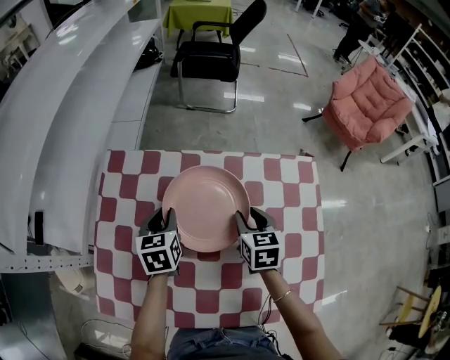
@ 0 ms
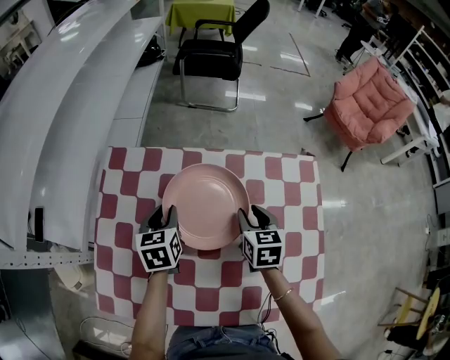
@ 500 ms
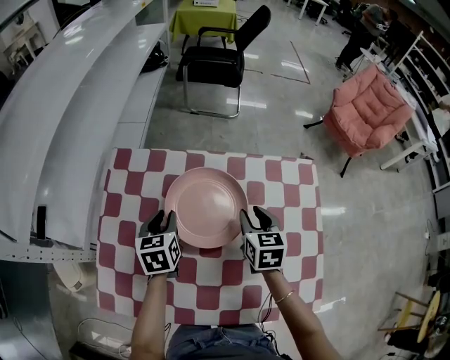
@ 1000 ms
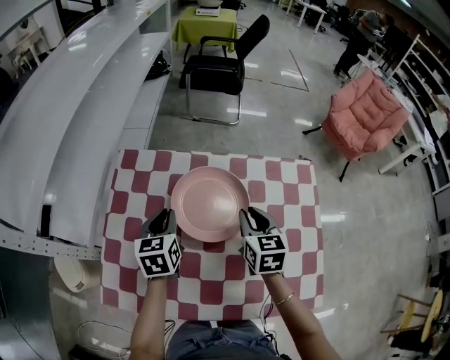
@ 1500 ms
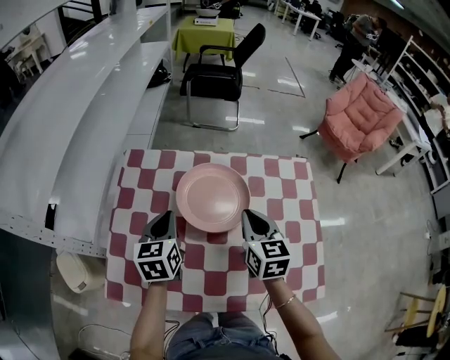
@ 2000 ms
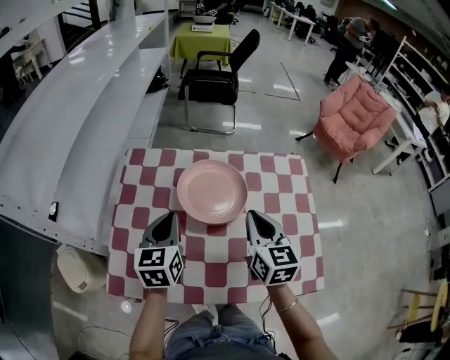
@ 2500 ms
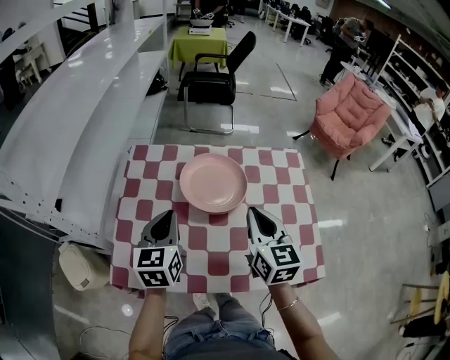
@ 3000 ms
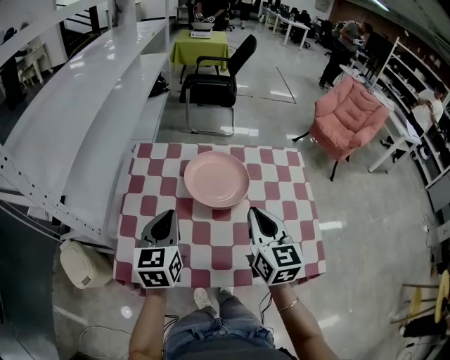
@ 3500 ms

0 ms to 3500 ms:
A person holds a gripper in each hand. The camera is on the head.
0 ms to 2000 ms: Both grippers move upward and backward, roughly 15 cm. The right gripper closes up.
2000 ms to 3500 ms: Both grippers move backward and upward, about 15 cm.

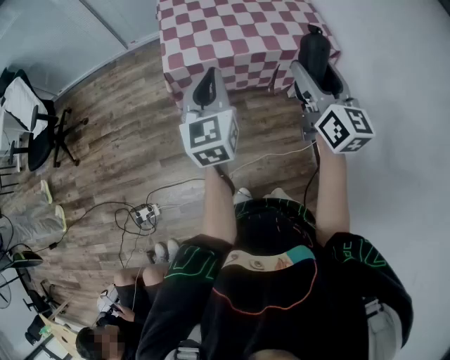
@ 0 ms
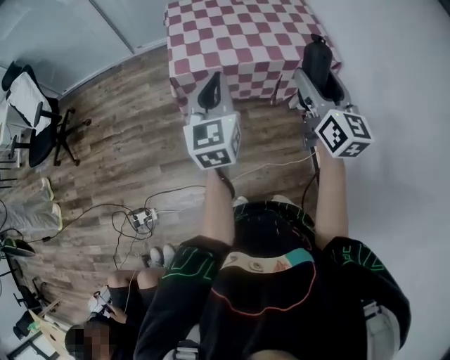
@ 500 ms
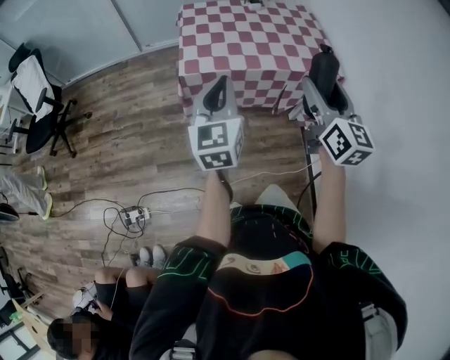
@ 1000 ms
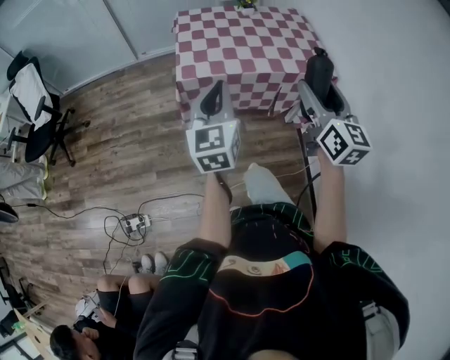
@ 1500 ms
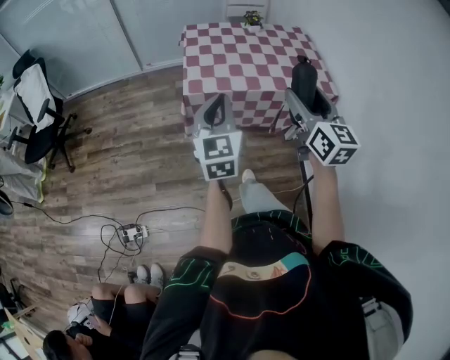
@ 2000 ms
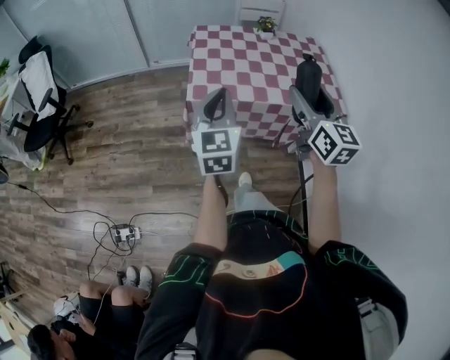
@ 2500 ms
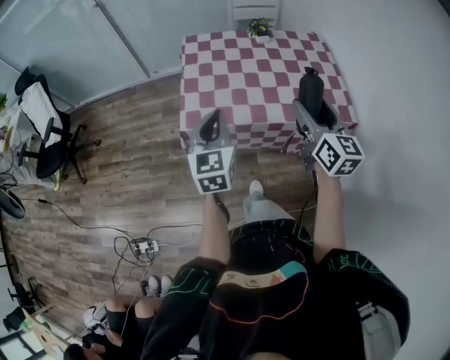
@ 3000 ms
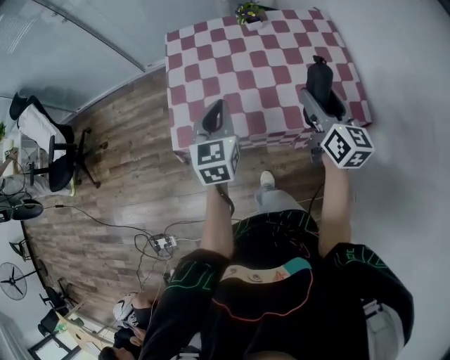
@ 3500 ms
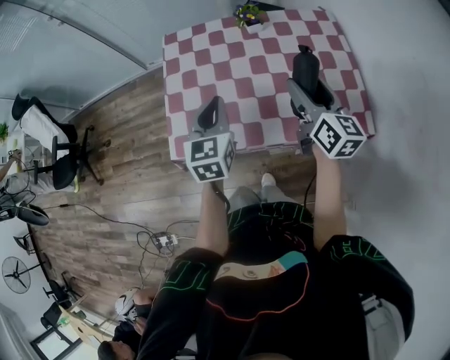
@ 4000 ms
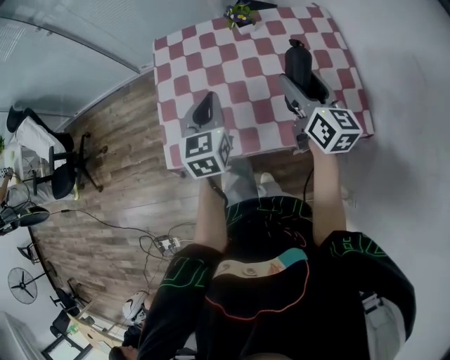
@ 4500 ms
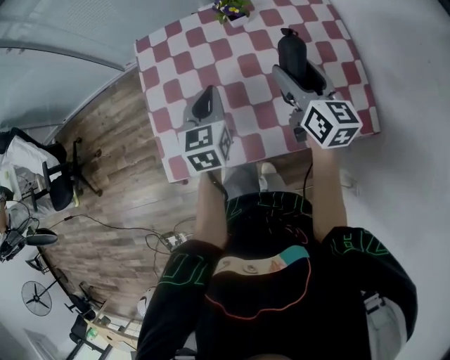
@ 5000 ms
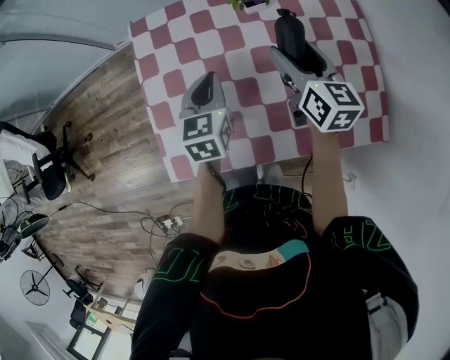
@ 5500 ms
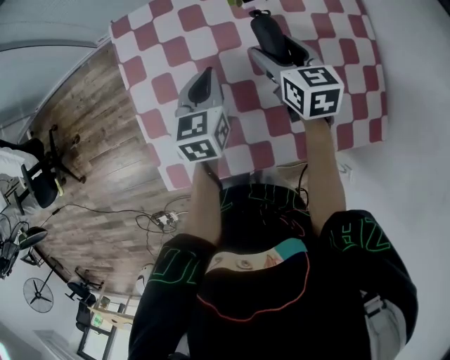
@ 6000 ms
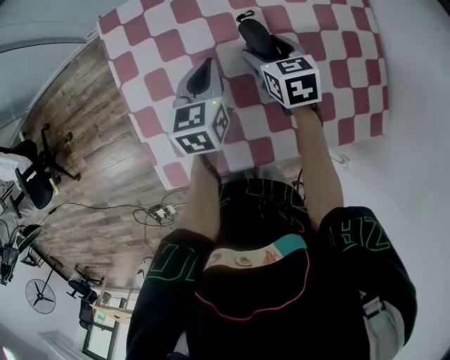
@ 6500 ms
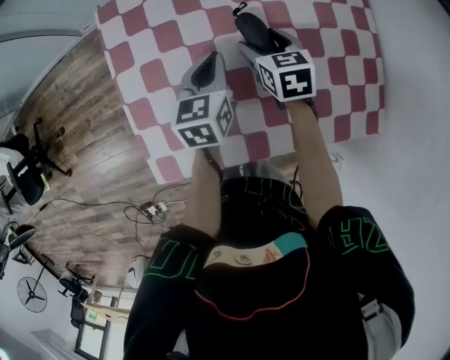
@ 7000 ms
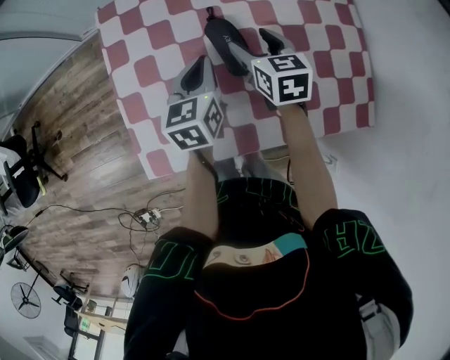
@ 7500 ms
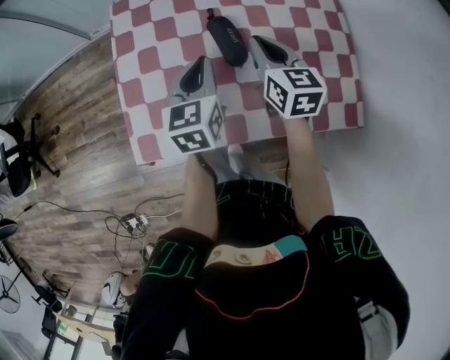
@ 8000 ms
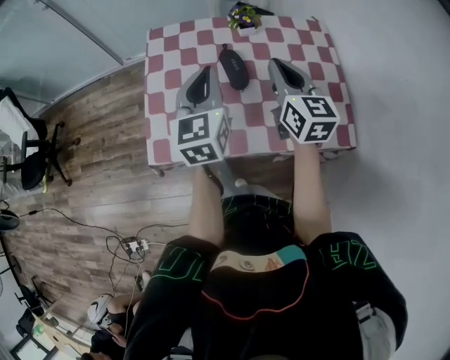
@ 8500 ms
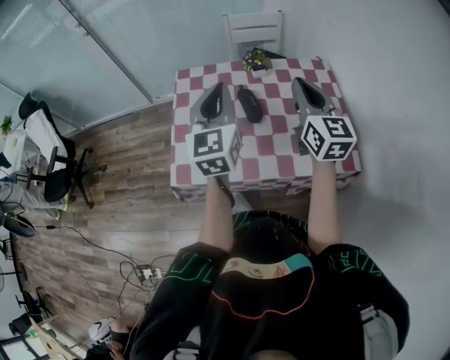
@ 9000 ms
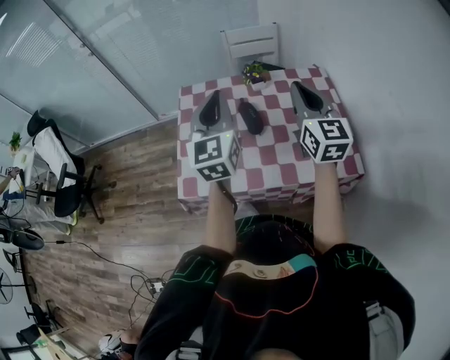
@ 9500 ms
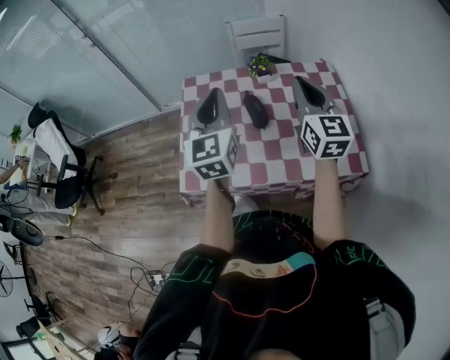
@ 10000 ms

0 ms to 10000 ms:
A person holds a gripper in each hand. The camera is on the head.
0 ms to 2000 ms: The right gripper shifts approximately 5 cm to the left.
2000 ms to 4000 ms: Both grippers travel together forward, about 35 cm.
4000 ms to 6000 ms: The right gripper moves forward, downward and to the left, some 25 cm, and rotates some 30 degrees. The left gripper shifts about 20 cm forward and downward.
6000 ms to 8000 ms: Both grippers travel together backward, about 5 cm. The right gripper closes its fingers.
8000 ms to 10000 ms: Both grippers travel together upward, some 20 cm. The right gripper swivels some 30 degrees. Meanwhile the left gripper swivels approximately 30 degrees.

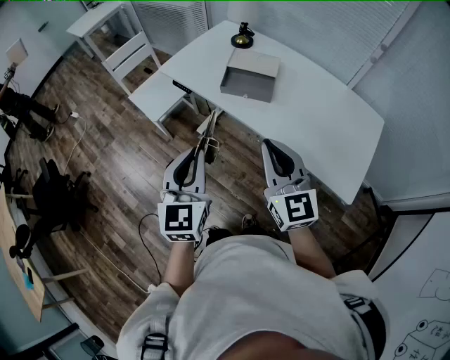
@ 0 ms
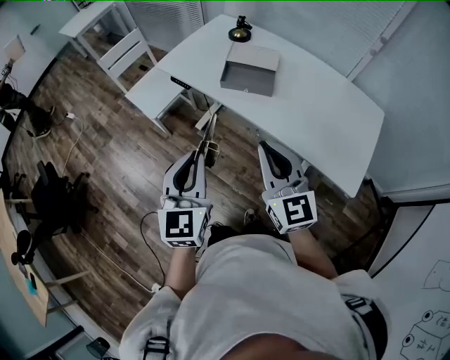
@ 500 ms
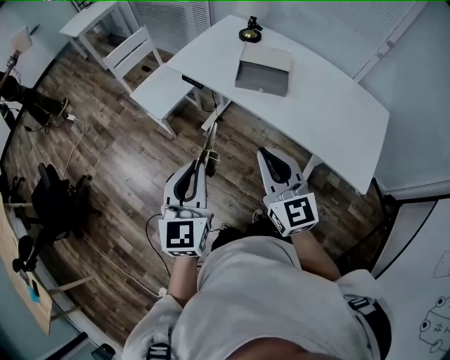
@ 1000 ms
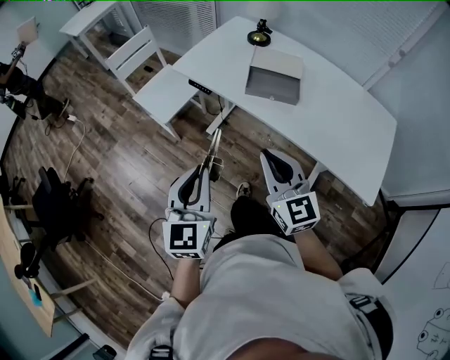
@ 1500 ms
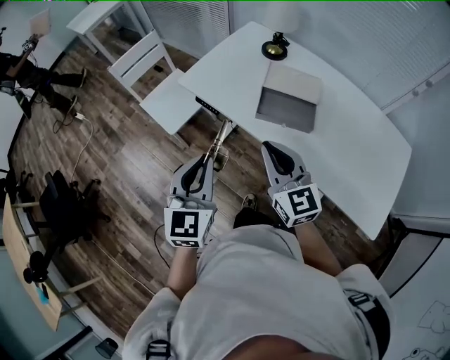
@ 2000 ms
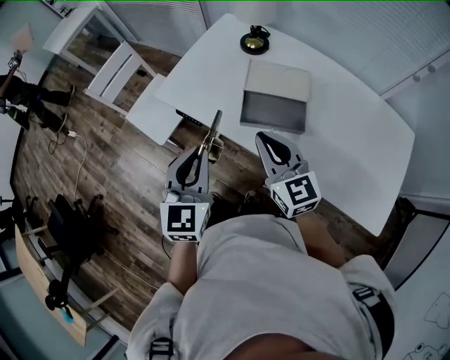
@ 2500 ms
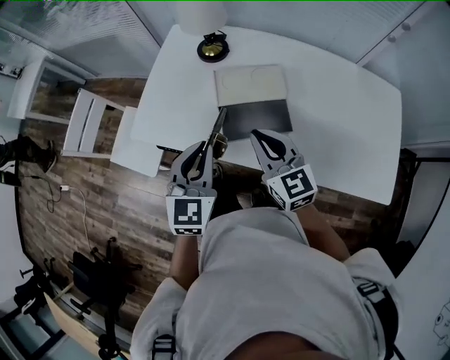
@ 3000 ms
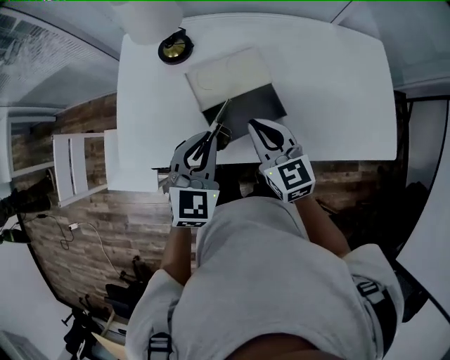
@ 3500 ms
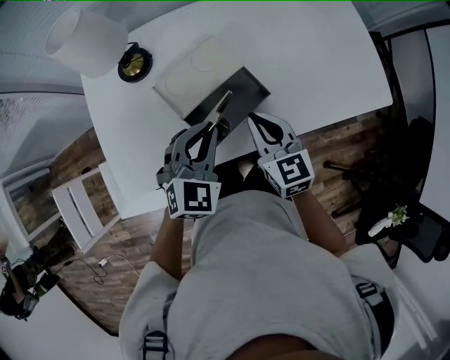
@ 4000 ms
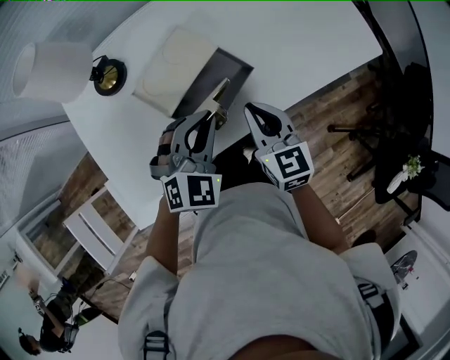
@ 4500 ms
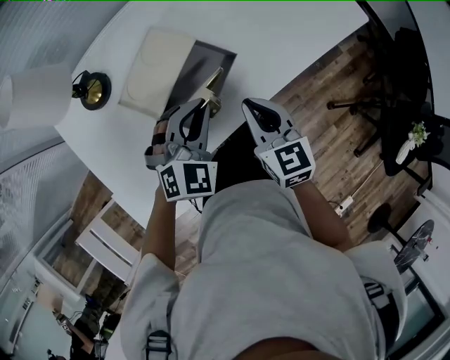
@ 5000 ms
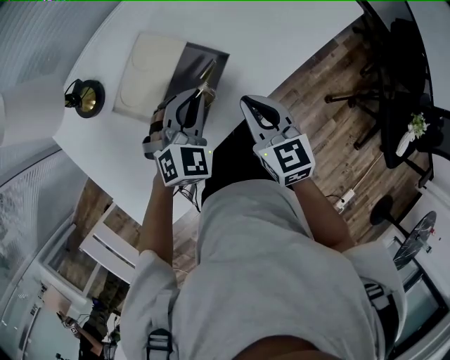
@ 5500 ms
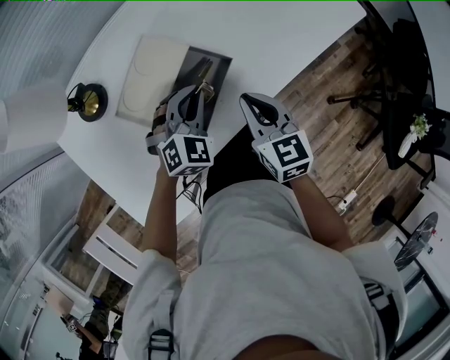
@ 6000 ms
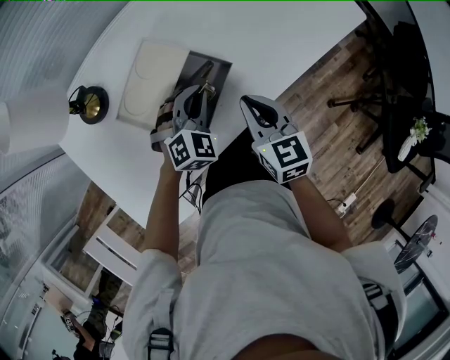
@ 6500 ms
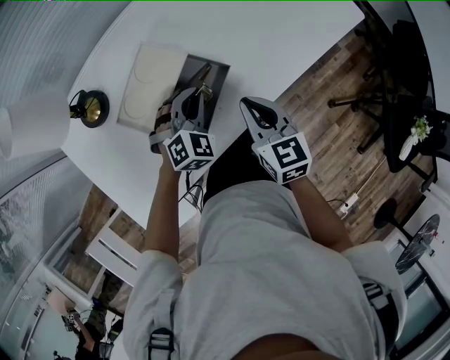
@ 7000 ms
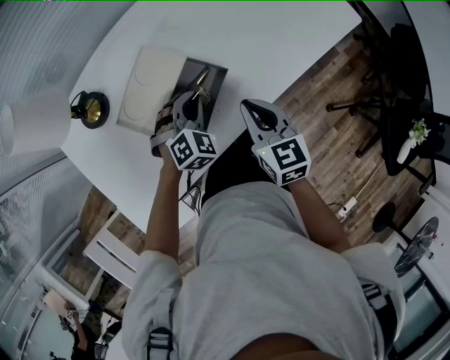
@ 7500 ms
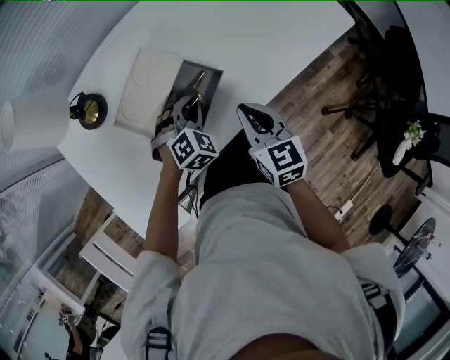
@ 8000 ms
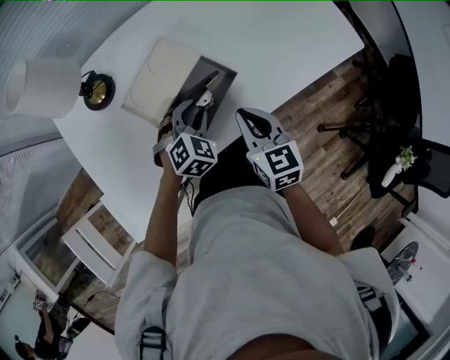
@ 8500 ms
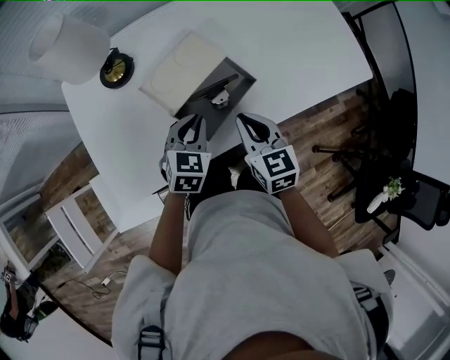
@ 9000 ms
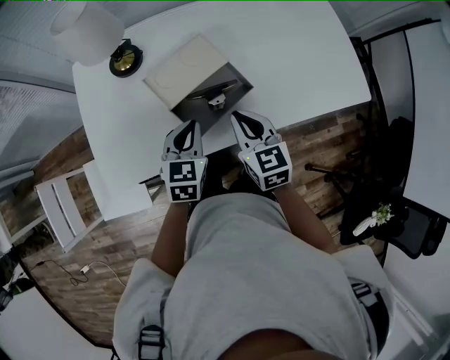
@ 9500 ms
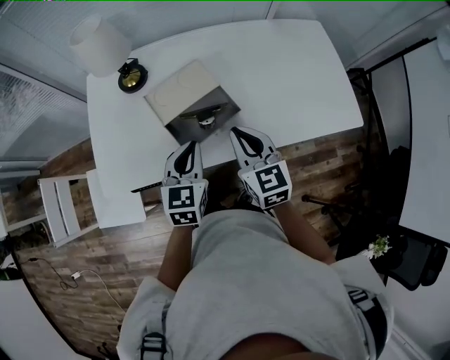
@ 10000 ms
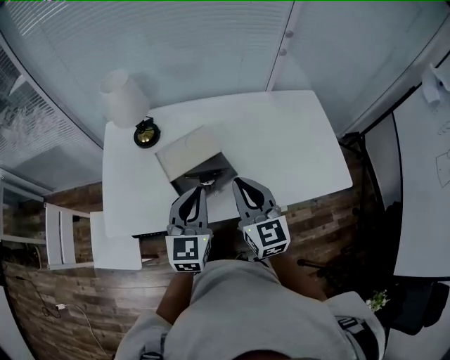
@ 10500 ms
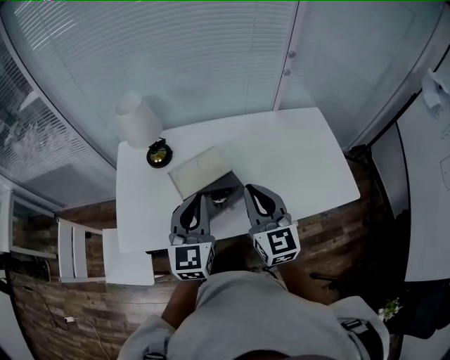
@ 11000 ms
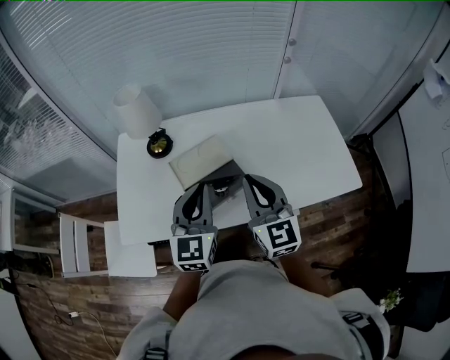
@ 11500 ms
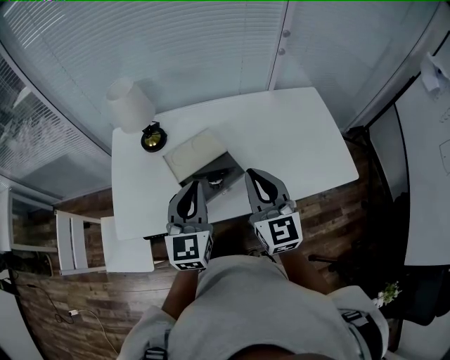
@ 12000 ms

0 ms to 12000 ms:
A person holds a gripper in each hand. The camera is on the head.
0 ms to 2000 ms: Both grippers move forward and to the left, approximately 20 cm.
2000 ms to 4000 ms: The right gripper changes place by about 25 cm, and changes its angle by some 60 degrees. Meanwhile the left gripper changes place by roughly 35 cm, and rotates about 80 degrees.
4000 ms to 6000 ms: The right gripper moves to the right, roughly 5 cm, and changes its angle by approximately 20 degrees, while the left gripper shifts about 10 cm downward, forward and to the right, and swivels approximately 30 degrees.
6000 ms to 8000 ms: The left gripper is displaced downward by about 5 cm.
8000 ms to 10000 ms: The left gripper moves upward and backward, roughly 20 cm, rotates around the line of its fingers by approximately 60 degrees, counterclockwise from behind, and opens, then closes once more. The right gripper travels upward by roughly 10 cm, and swivels about 30 degrees.
10000 ms to 12000 ms: Both grippers move upward, some 15 cm. The left gripper turns by approximately 20 degrees.

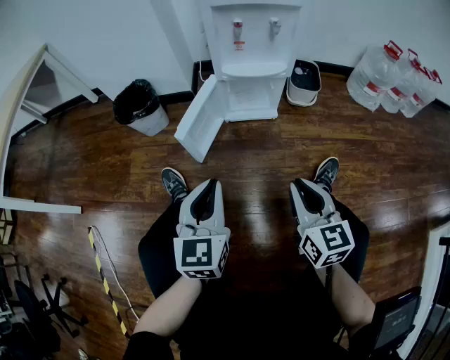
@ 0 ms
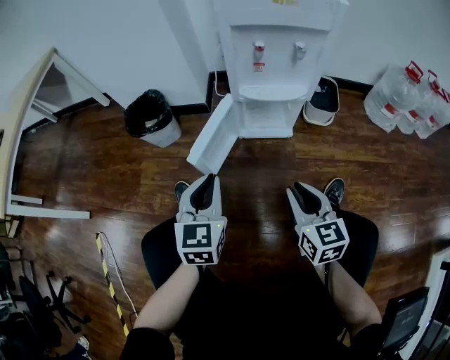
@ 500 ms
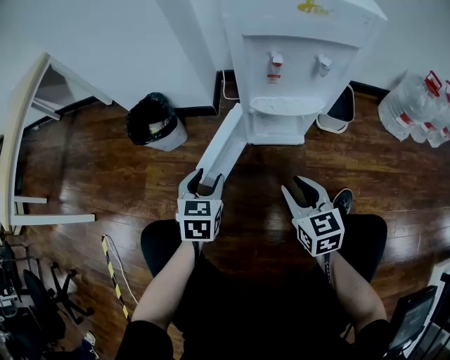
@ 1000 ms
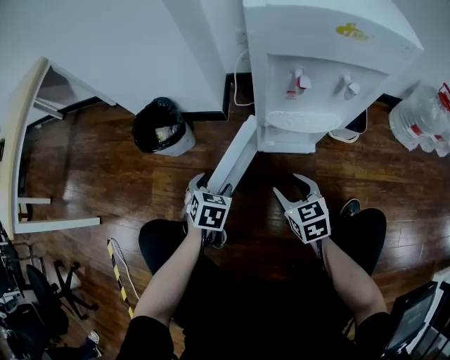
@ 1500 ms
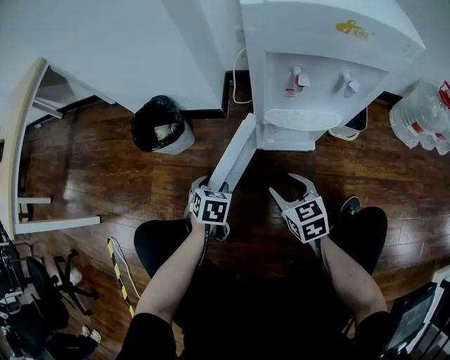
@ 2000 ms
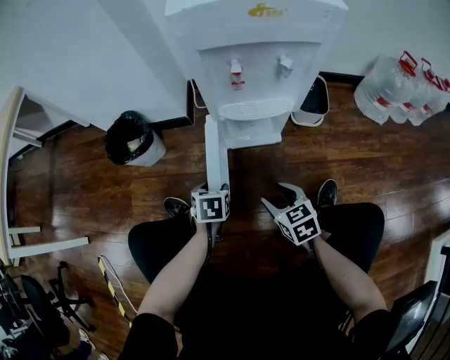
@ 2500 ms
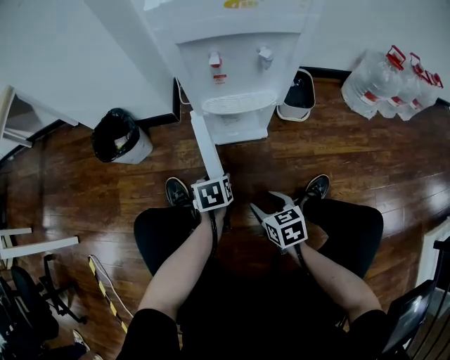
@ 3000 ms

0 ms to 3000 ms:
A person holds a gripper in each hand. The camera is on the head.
0 ms to 1500 ms: The two grippers go about 30 cm forward and downward. The right gripper turns by about 30 degrees, and opens up. The left gripper tips its fingers downward by about 40 degrees, and opens up.
1500 ms to 3000 ms: The left gripper moves to the right and backward, roughly 15 cm, and rotates approximately 30 degrees. The right gripper travels backward by approximately 15 cm.
